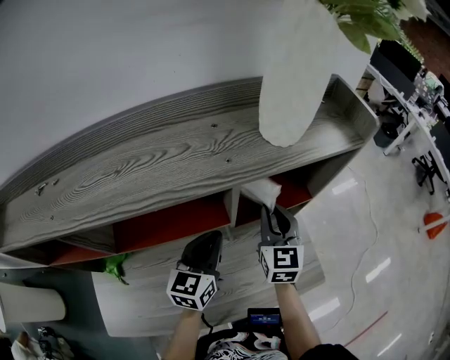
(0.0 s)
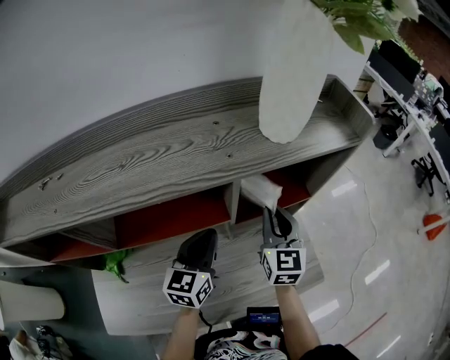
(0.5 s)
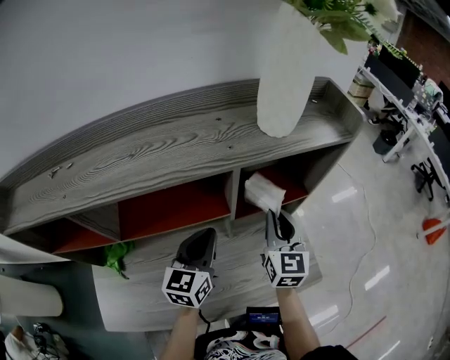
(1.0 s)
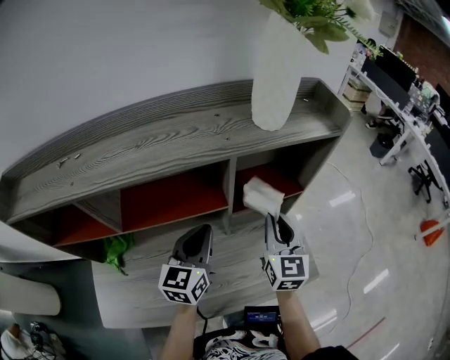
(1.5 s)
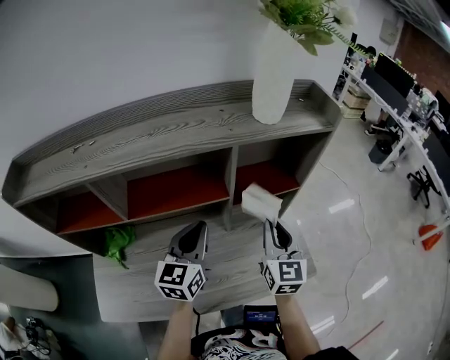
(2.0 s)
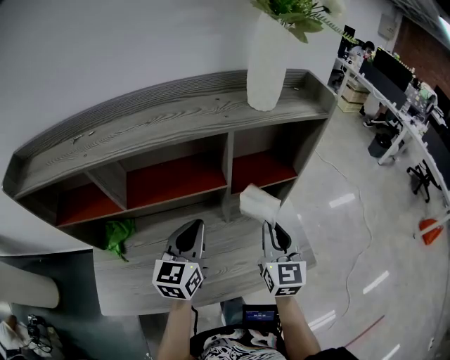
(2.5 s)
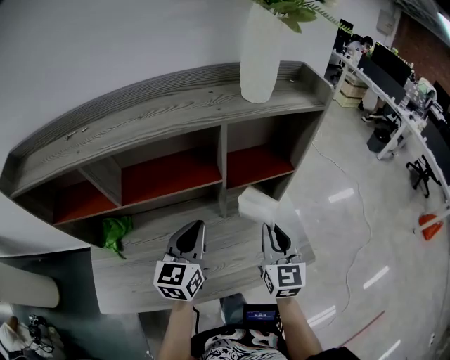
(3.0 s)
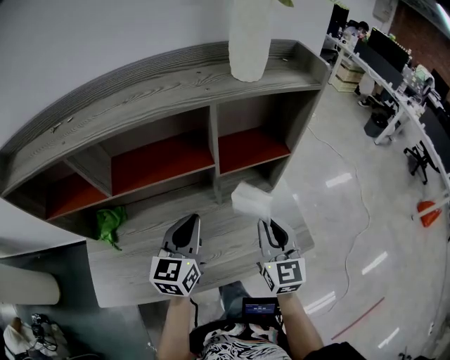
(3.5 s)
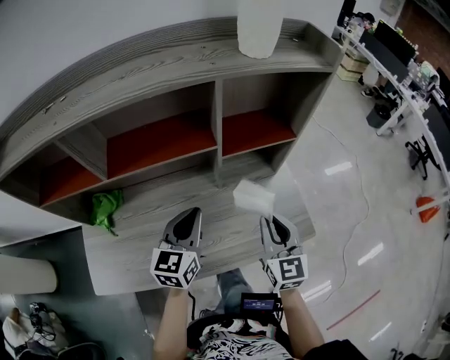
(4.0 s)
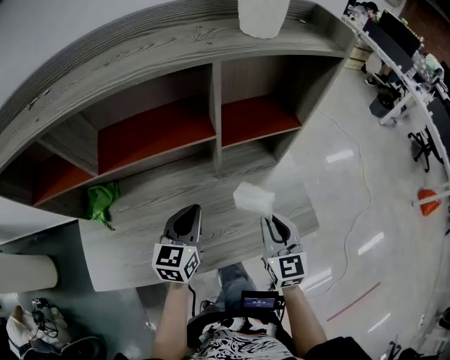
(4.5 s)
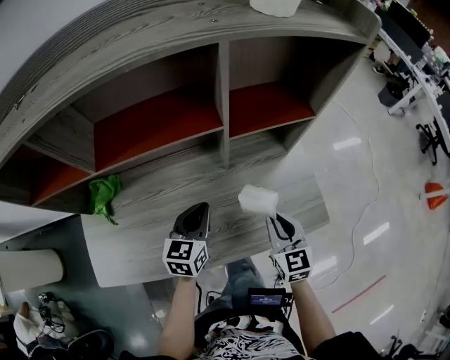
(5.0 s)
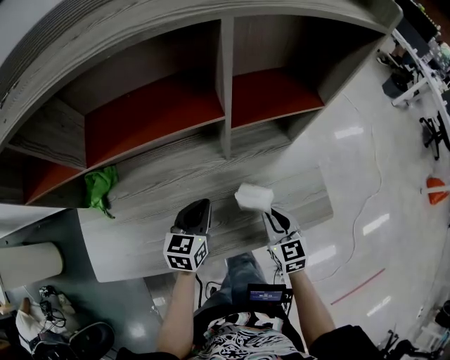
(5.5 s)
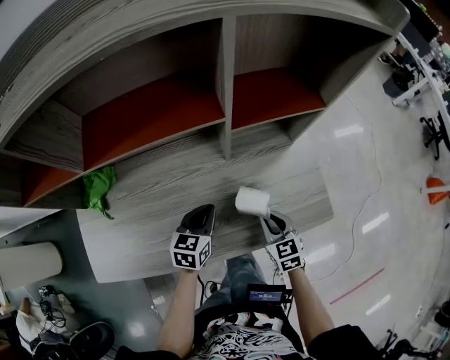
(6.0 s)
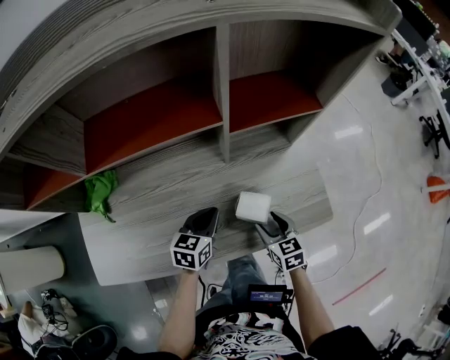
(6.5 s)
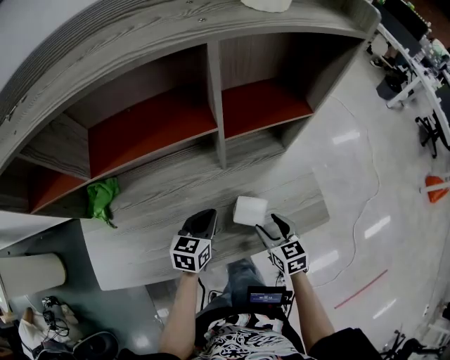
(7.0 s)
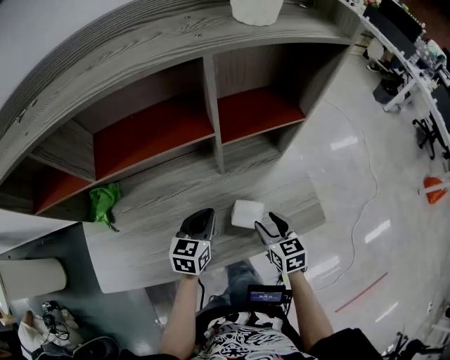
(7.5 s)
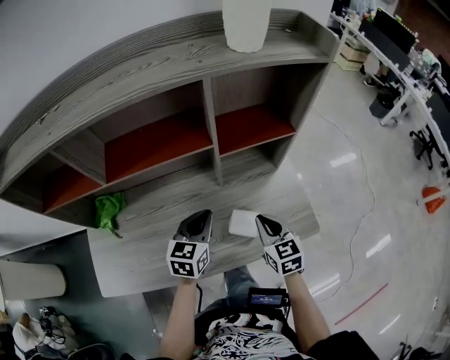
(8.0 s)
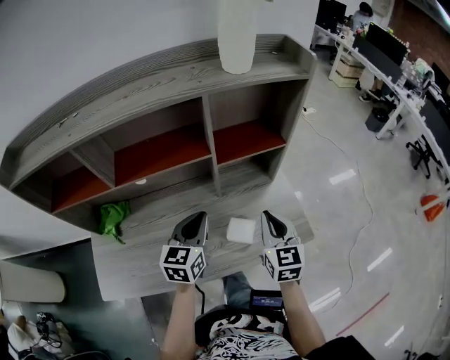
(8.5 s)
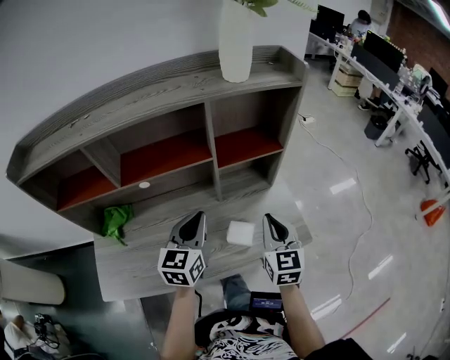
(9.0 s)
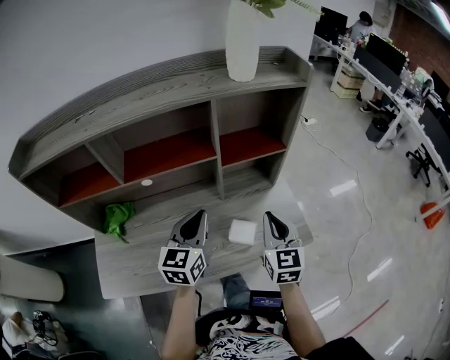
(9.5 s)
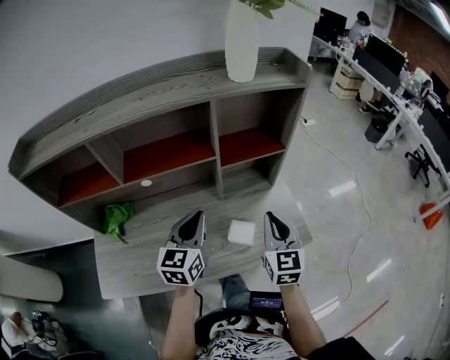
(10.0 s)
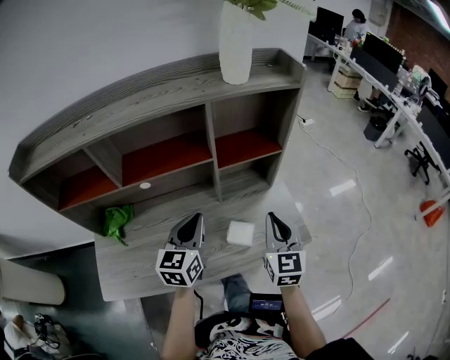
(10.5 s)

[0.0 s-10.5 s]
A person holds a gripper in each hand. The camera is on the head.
0.0 to 2.0 s: The right gripper heads backward, covering about 10 cm; the left gripper shifts some 10 cm backward and upward.
2.0 to 4.0 s: The right gripper shifts roughly 10 cm backward and downward, while the left gripper heads downward and backward, covering about 10 cm.
4.0 to 6.5 s: Both grippers move downward, about 20 cm. The right gripper angles its fingers downward, by some 30 degrees, and opens its fingers; the left gripper rotates some 30 degrees.
6.5 to 8.5 s: The two grippers go about 20 cm upward. The right gripper changes its angle by about 30 degrees, and closes, while the left gripper changes its angle by roughly 20 degrees.
8.5 to 10.5 s: The grippers stay close to where they were, moving slightly.

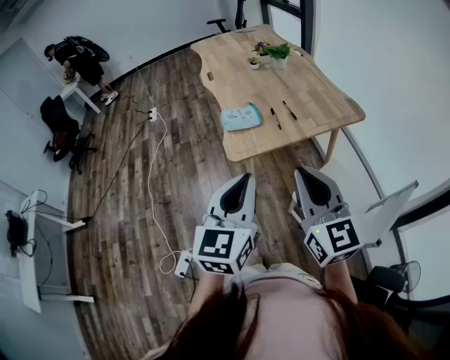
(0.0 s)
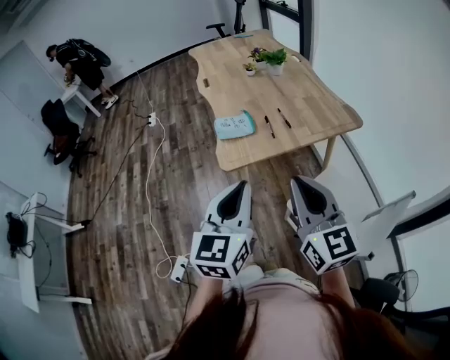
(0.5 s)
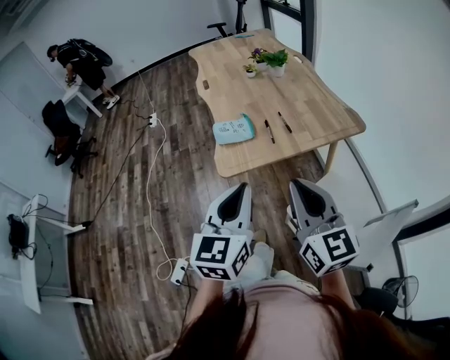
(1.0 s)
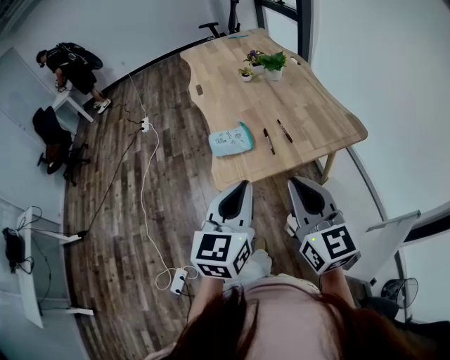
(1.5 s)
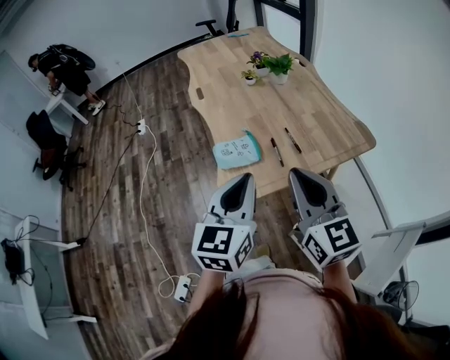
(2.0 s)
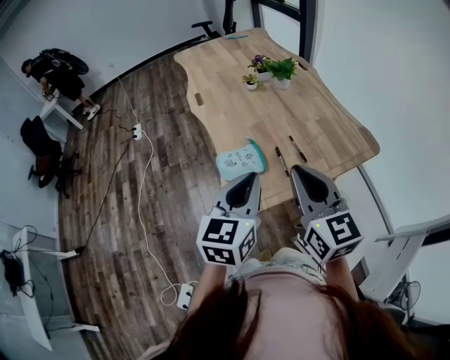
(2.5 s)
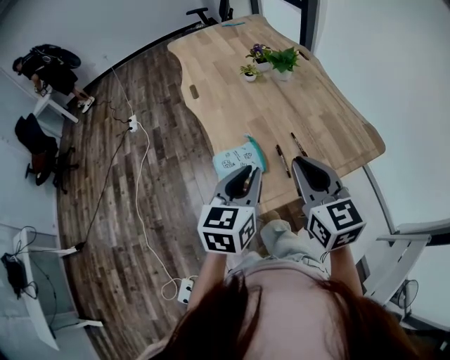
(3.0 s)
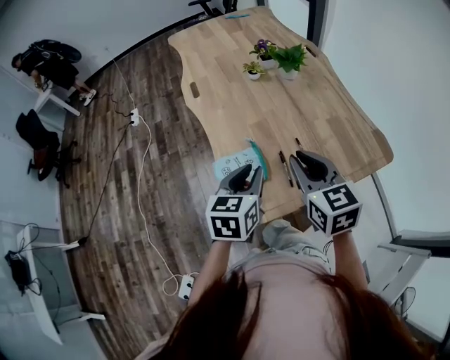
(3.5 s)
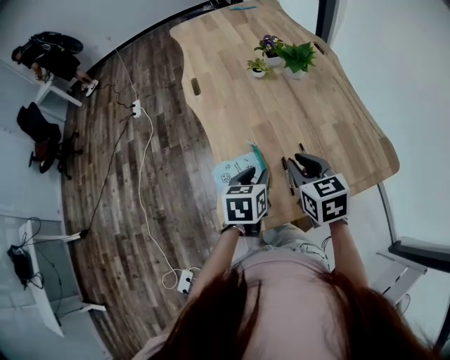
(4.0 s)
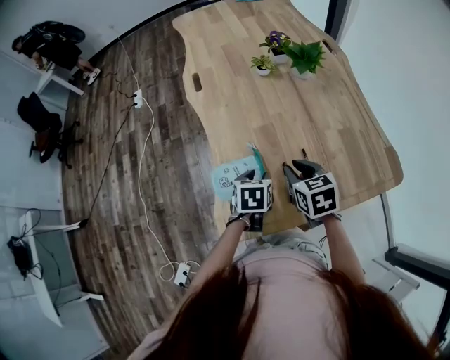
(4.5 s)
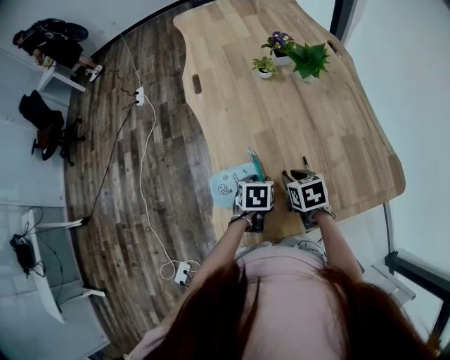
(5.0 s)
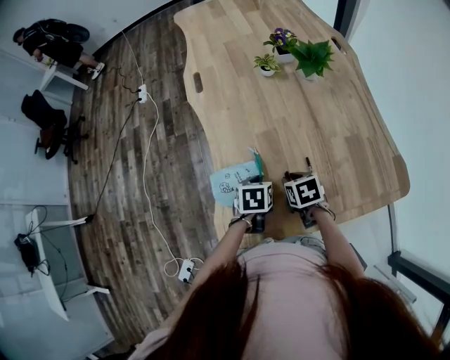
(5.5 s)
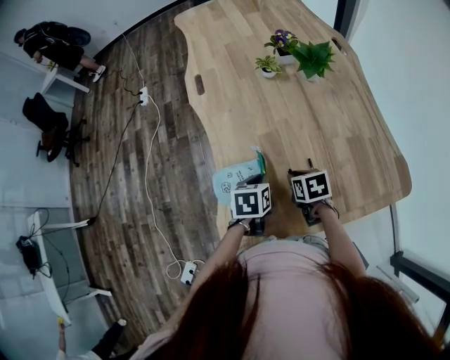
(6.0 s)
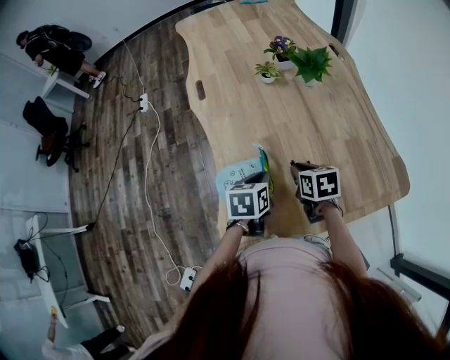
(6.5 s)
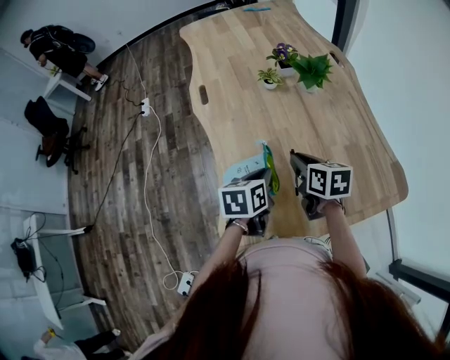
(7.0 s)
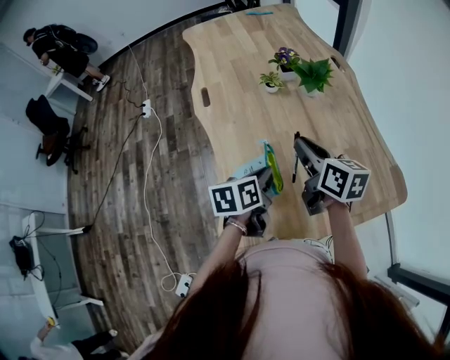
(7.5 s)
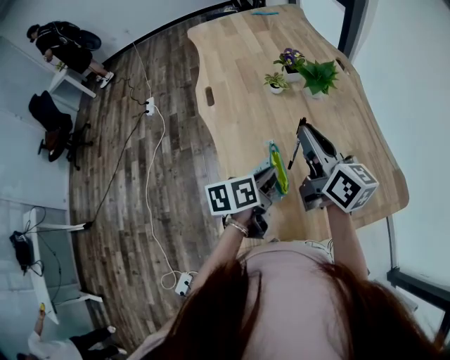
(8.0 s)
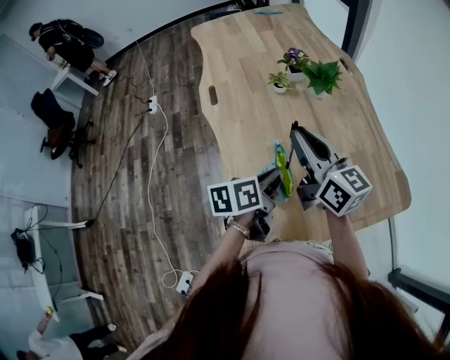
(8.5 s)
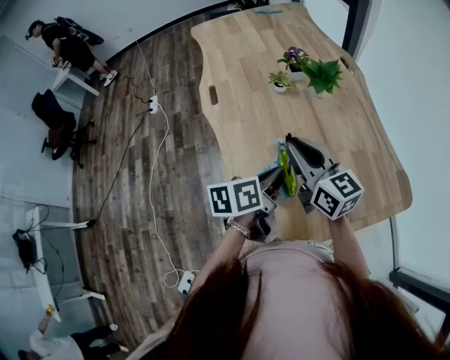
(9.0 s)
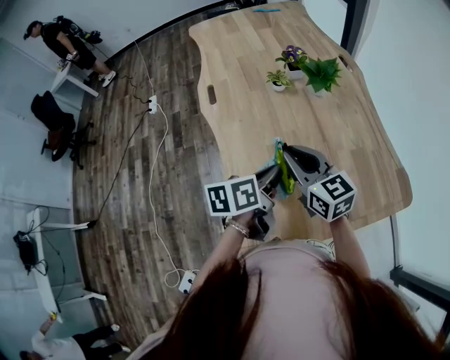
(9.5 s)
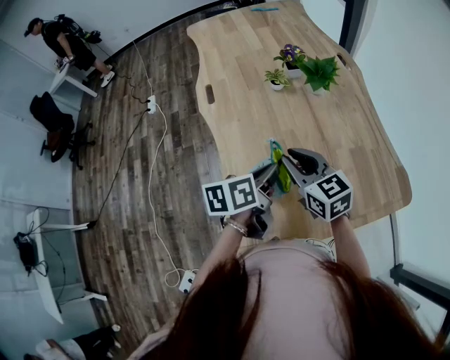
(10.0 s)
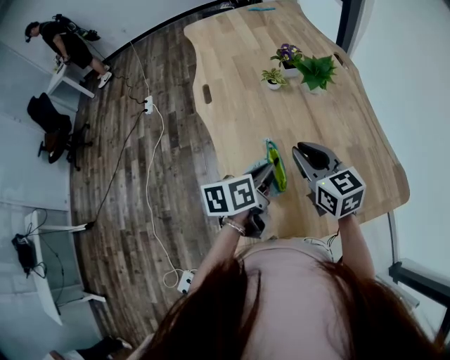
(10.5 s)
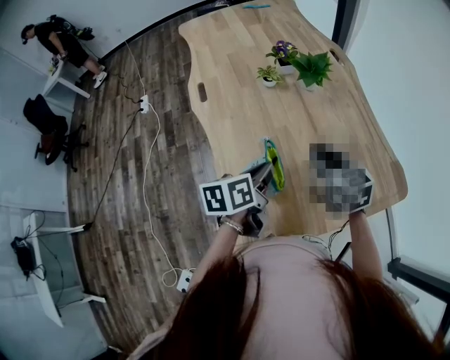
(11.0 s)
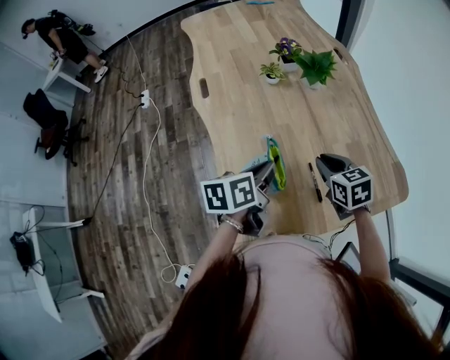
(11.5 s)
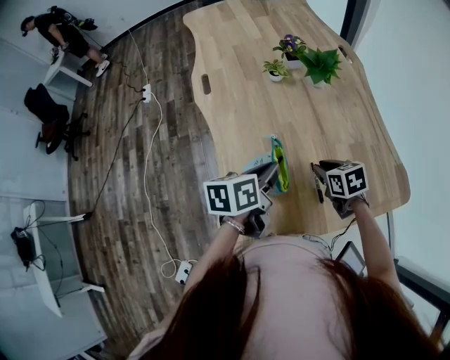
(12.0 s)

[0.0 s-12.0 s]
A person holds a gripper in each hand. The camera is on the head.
0.0 to 2.0 s: Both grippers move forward, some 20 cm.
2.0 to 4.0 s: Both grippers travel together forward and downward, some 30 cm. The left gripper tips its fingers downward by some 30 degrees, and opens up; the right gripper tilts its fingers approximately 30 degrees downward.
4.0 to 6.0 s: The right gripper heads downward, covering approximately 20 cm, and changes its angle by roughly 30 degrees, while the left gripper moves downward and forward, approximately 10 cm, and closes up.
6.0 to 8.0 s: The right gripper is displaced upward by about 30 cm, and angles its fingers upward, by about 60 degrees. The left gripper shifts approximately 10 cm upward, and changes its angle by roughly 30 degrees.
8.0 to 10.0 s: The right gripper shifts some 10 cm downward, and changes its angle by about 30 degrees.
10.0 to 12.0 s: The right gripper shifts roughly 20 cm downward and to the right, and tilts its fingers some 30 degrees downward.

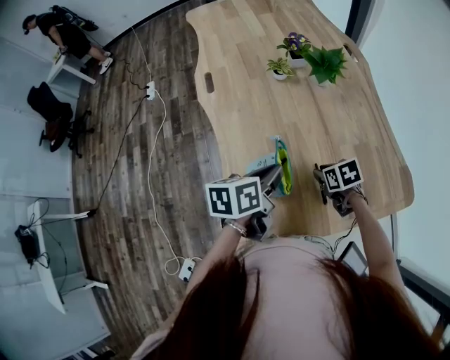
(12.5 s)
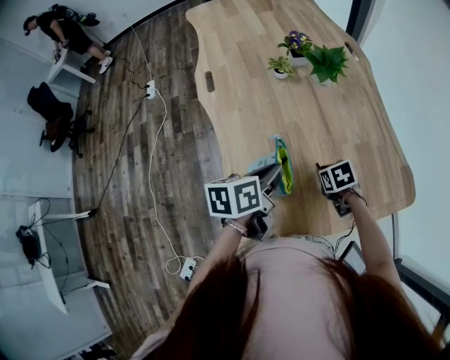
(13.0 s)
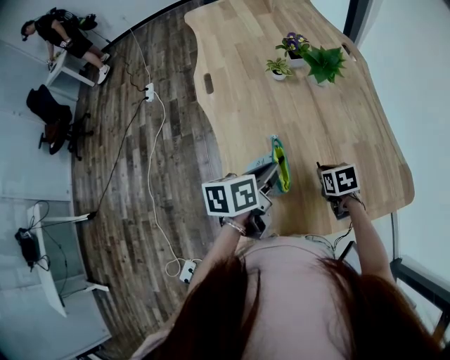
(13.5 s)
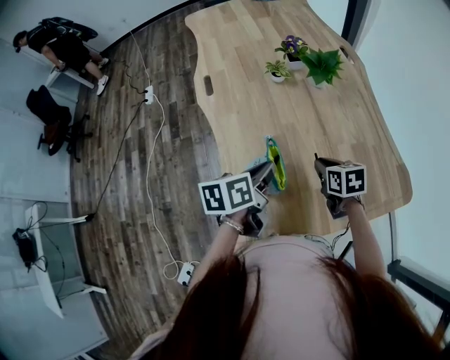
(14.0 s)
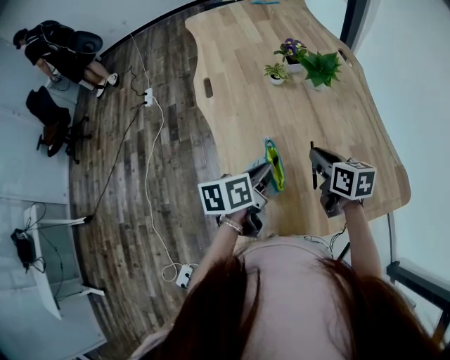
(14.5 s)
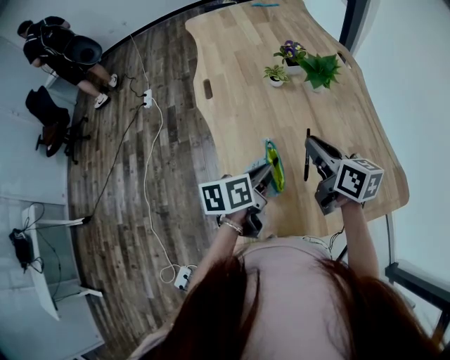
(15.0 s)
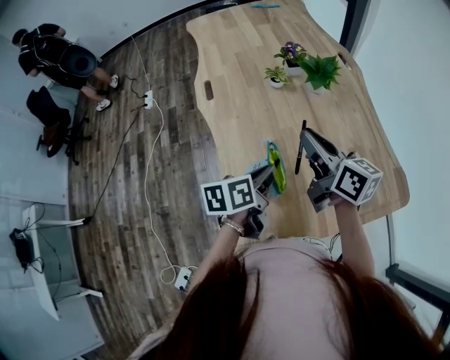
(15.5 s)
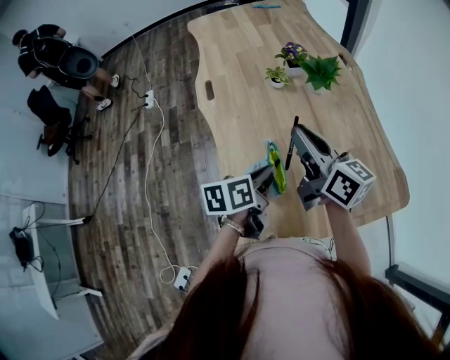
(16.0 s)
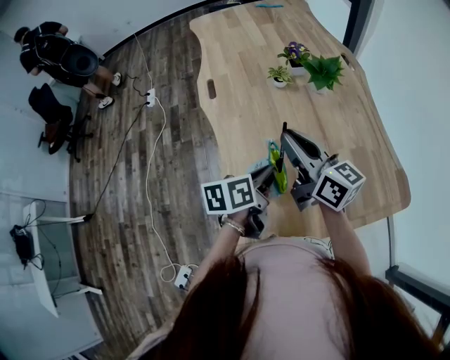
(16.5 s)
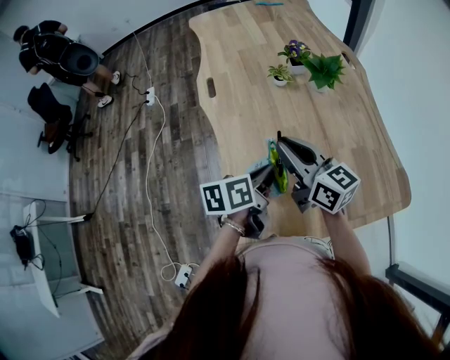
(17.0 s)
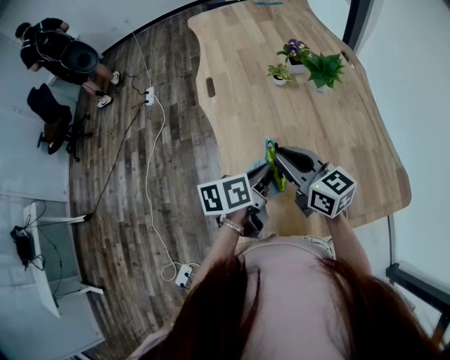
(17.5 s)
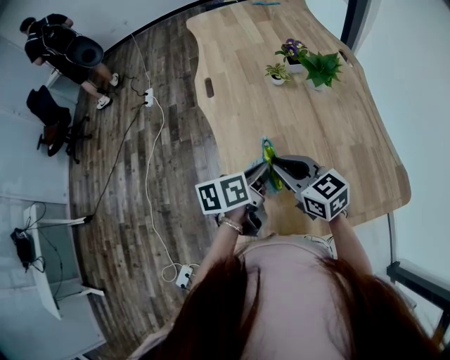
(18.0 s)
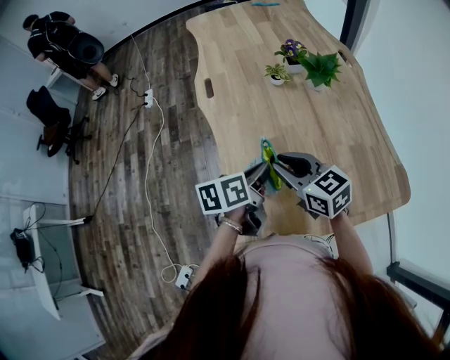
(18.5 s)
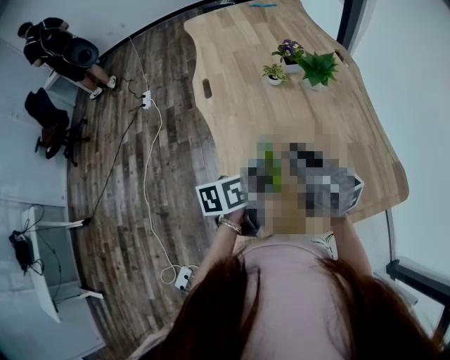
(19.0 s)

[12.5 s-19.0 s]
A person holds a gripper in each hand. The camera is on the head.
12.5 to 14.5 s: The right gripper moves upward, some 15 cm, and swivels approximately 30 degrees.
14.5 to 17.0 s: The right gripper travels to the left and upward by roughly 15 cm, and points its fingers about 30 degrees further upward.
